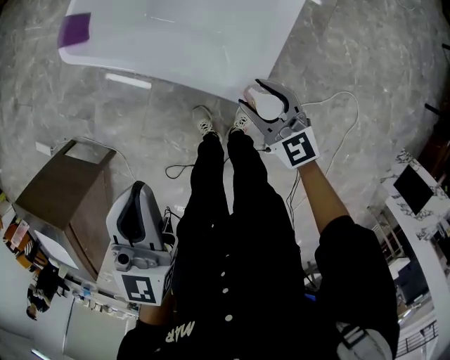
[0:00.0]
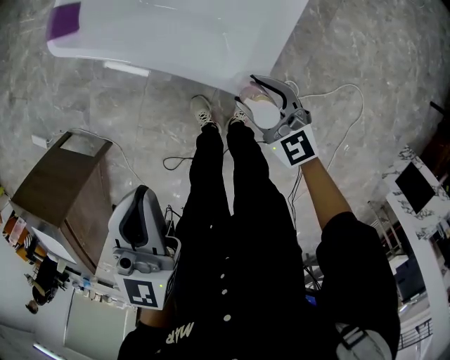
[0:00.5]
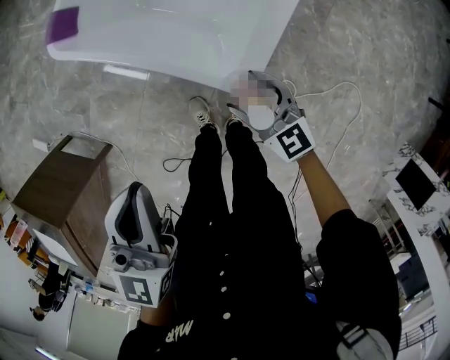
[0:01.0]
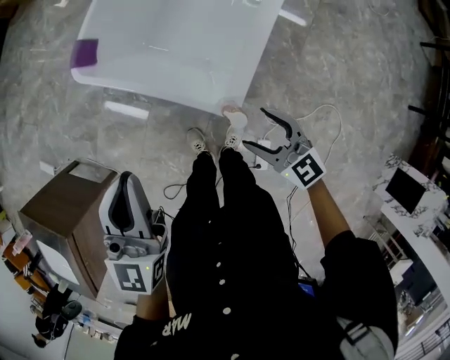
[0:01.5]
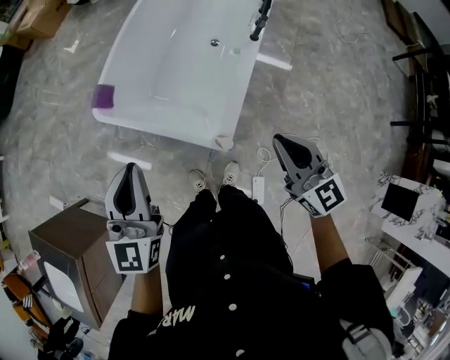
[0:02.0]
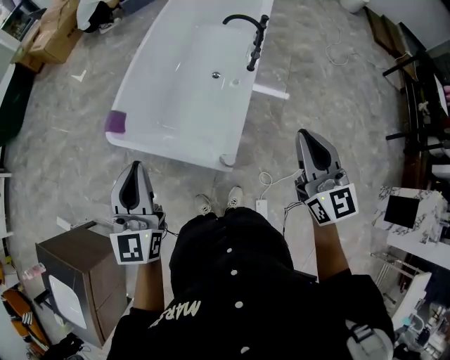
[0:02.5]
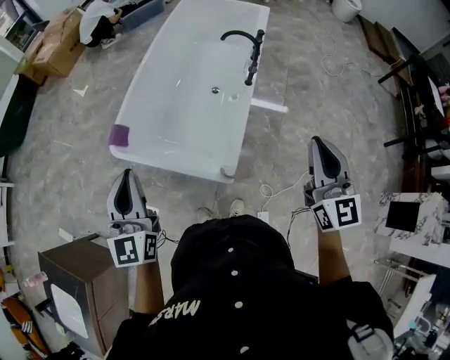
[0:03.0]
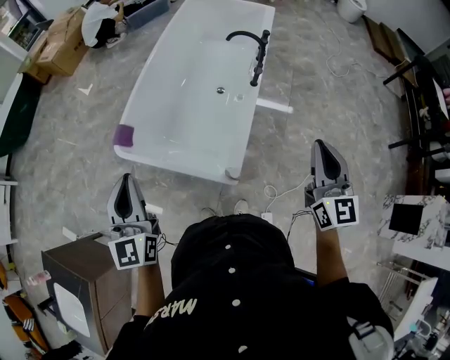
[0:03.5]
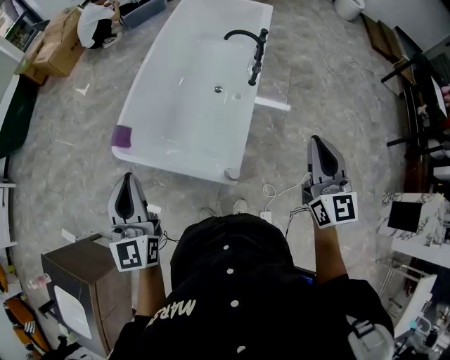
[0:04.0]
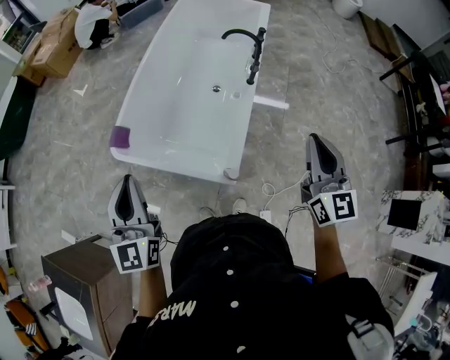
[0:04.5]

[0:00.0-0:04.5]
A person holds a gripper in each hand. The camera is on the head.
0:00.0 to 0:02.0: The left gripper heads upward, covering about 15 cm, while the right gripper goes approximately 30 cm upward, rotates approximately 20 degrees, and closes.
0:02.0 to 0:04.5: The left gripper moves to the left and upward, some 5 cm. The right gripper shifts roughly 15 cm upward and to the right, and rotates some 30 degrees.

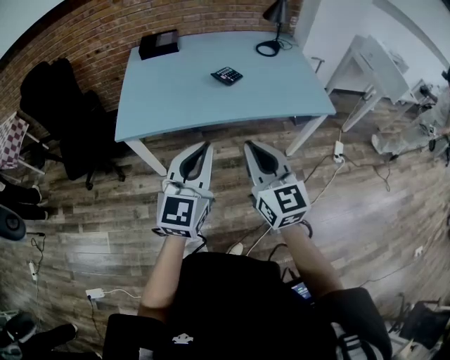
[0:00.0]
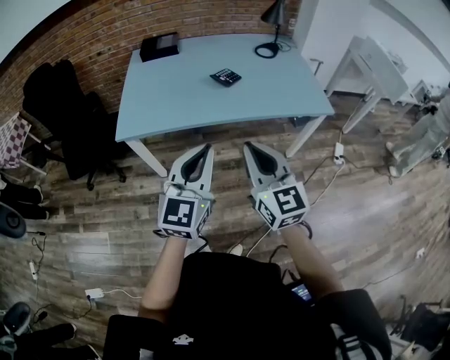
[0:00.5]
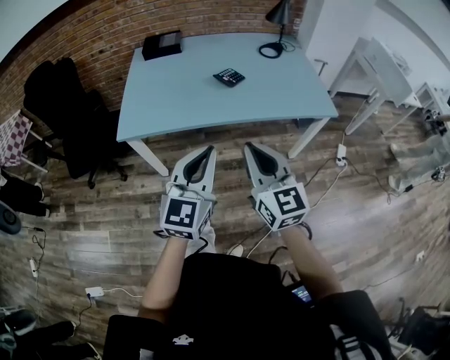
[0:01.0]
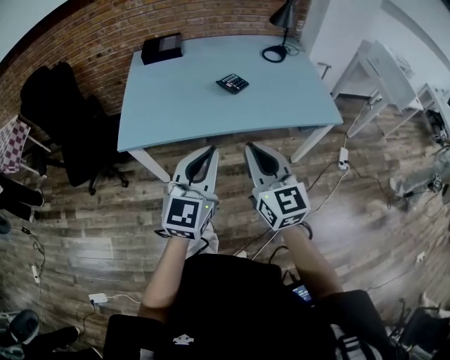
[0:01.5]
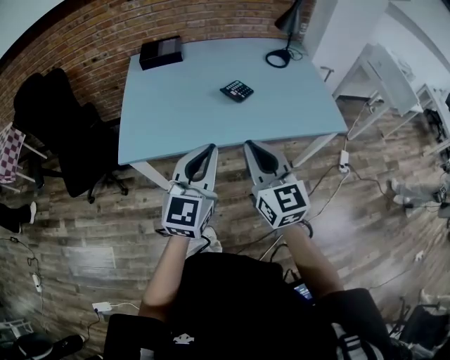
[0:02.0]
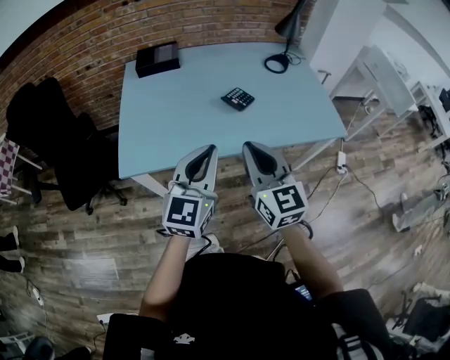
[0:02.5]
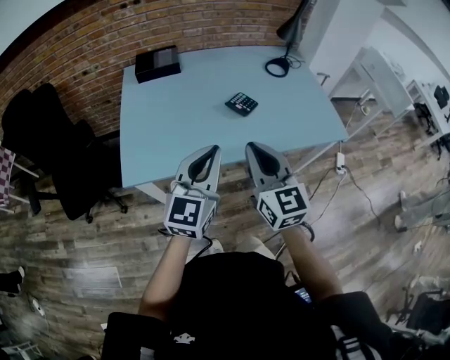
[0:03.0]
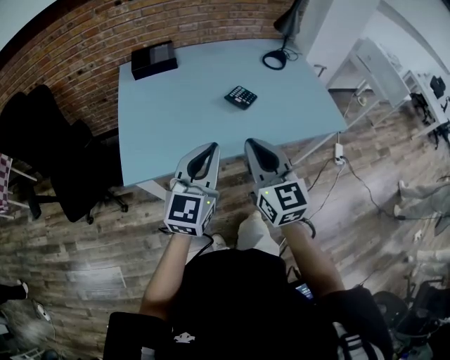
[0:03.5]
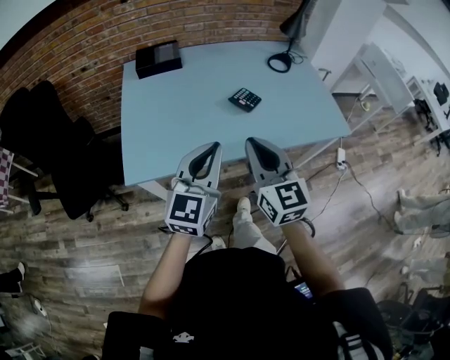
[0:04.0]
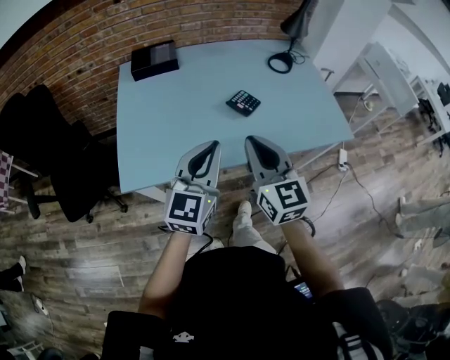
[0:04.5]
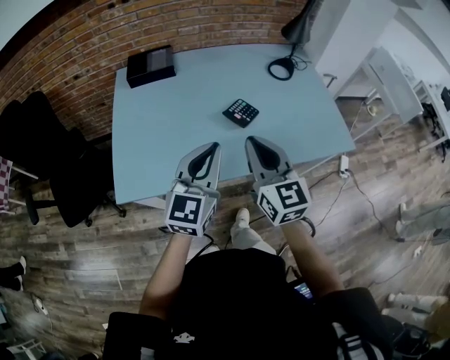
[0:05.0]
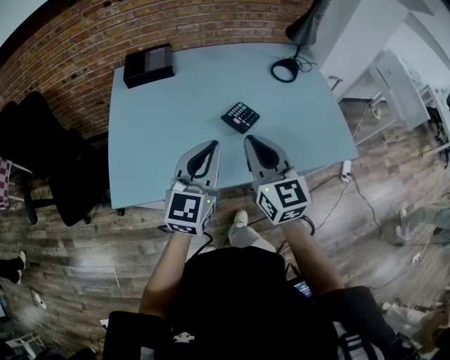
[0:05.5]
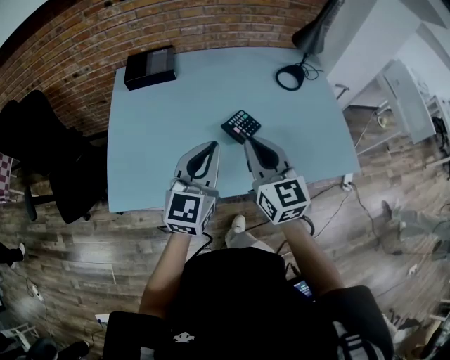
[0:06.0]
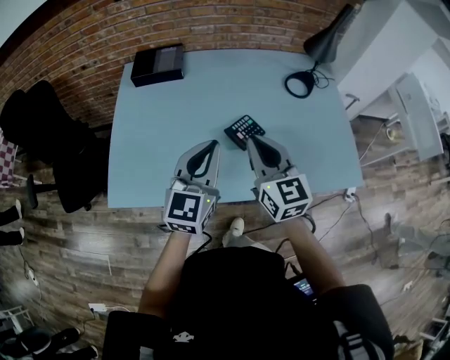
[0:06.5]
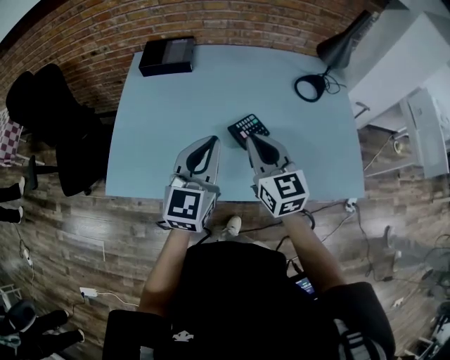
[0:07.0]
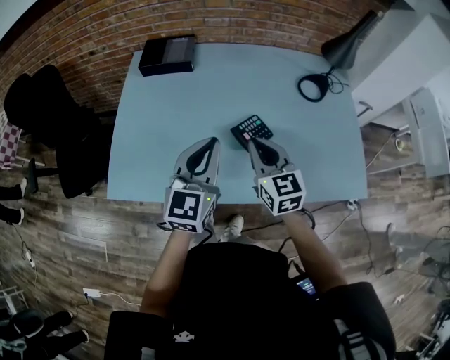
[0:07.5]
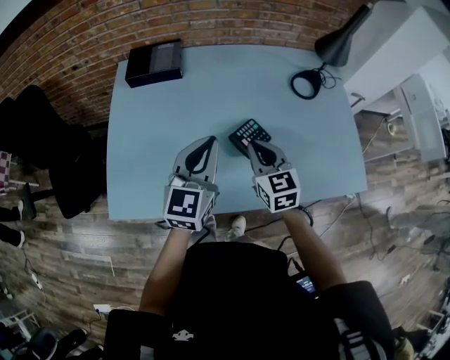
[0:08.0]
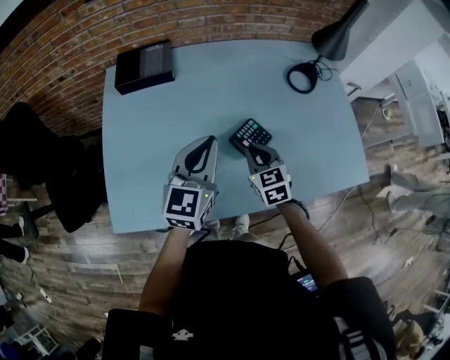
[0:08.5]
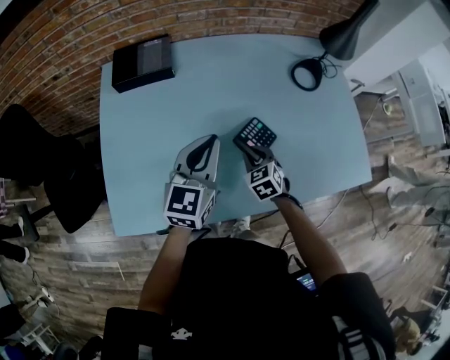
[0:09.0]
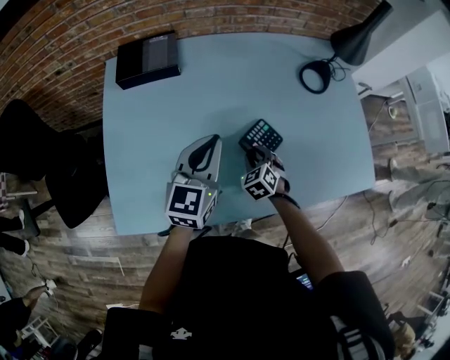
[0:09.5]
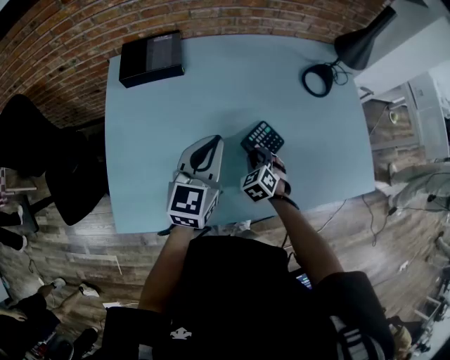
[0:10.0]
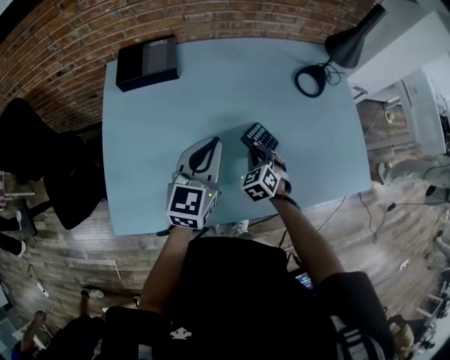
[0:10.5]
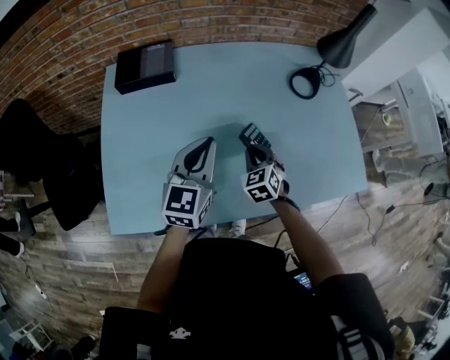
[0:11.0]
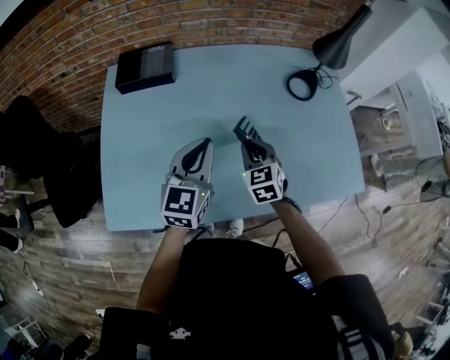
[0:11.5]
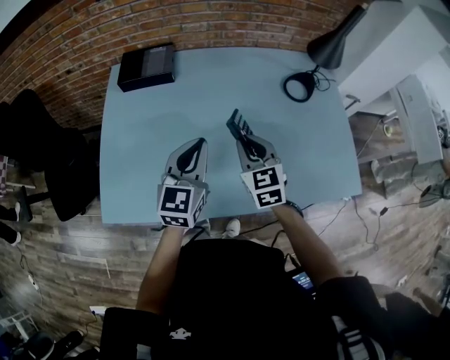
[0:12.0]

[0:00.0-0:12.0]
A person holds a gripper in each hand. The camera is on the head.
0:00.0 to 0:02.0: Both grippers travel together forward, some 10 cm.
0:02.0 to 0:04.0: The left gripper goes about 10 cm forward and to the left. The right gripper goes approximately 10 cm to the left and forward.
0:04.0 to 0:06.0: The two grippers go about 20 cm forward.
0:06.0 to 0:08.0: The left gripper goes approximately 10 cm forward, while the right gripper is displaced downward and forward by about 15 cm.
0:08.0 to 0:10.0: The right gripper travels downward by approximately 20 cm, tips its fingers downward by roughly 30 degrees, and opens; the left gripper moves forward, roughly 5 cm.
0:10.0 to 0:12.0: The right gripper shifts about 20 cm upward, and swivels roughly 40 degrees, while the left gripper ends up roughly 5 cm from where it was.

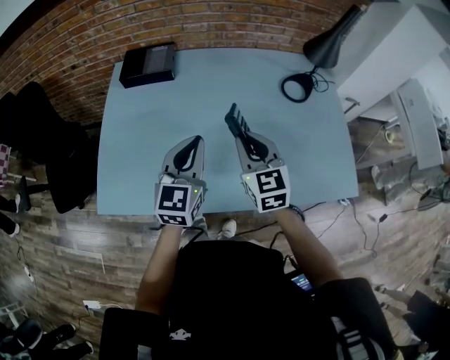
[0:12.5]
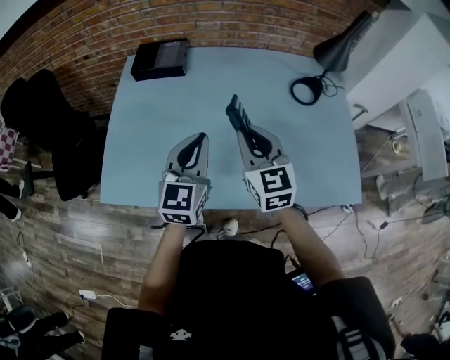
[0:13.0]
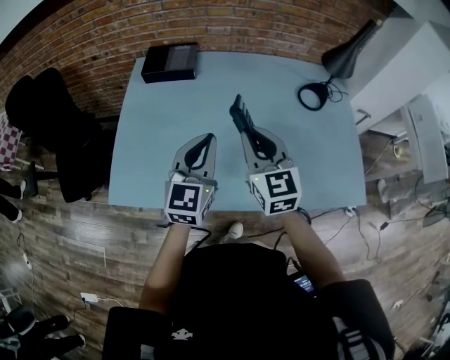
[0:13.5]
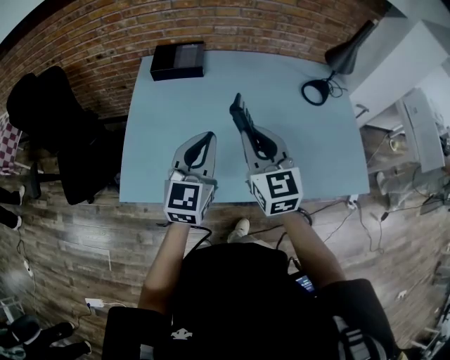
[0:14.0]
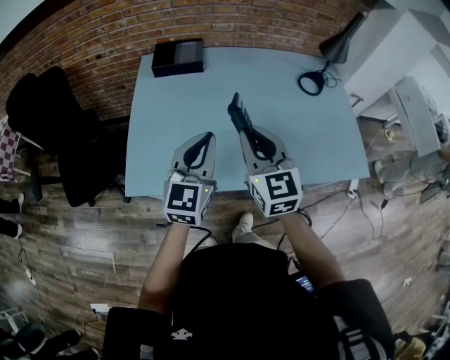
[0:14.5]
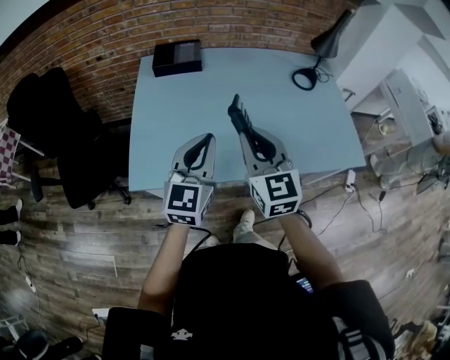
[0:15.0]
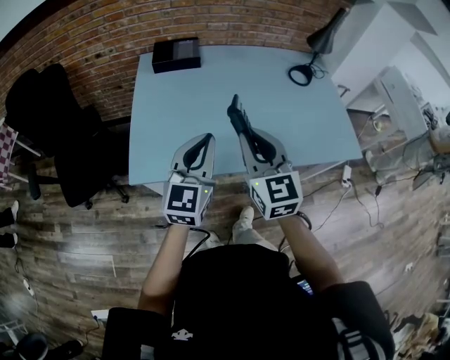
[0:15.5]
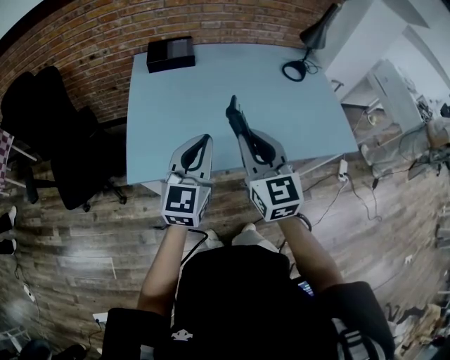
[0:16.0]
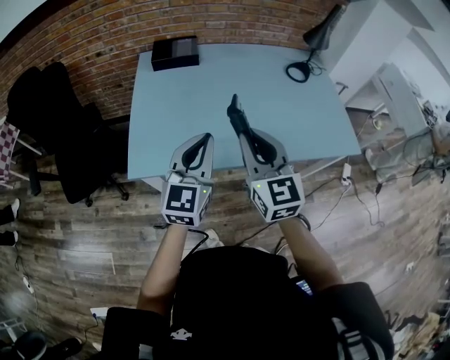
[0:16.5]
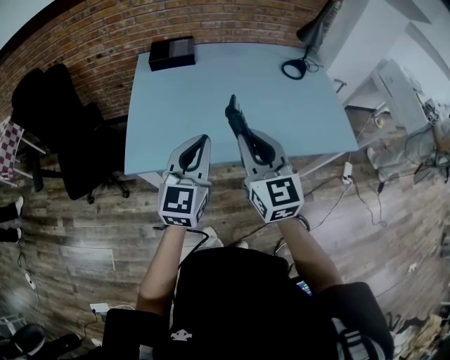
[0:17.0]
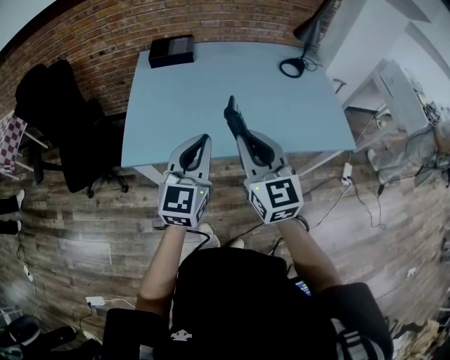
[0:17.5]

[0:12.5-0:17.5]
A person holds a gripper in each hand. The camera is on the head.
0:12.5 to 0:15.0: The left gripper goes approximately 20 cm backward and to the left. Meanwhile the right gripper is displaced backward, to the left and upward by some 25 cm.
0:15.0 to 0:17.5: The two grippers go about 15 cm backward and to the right.

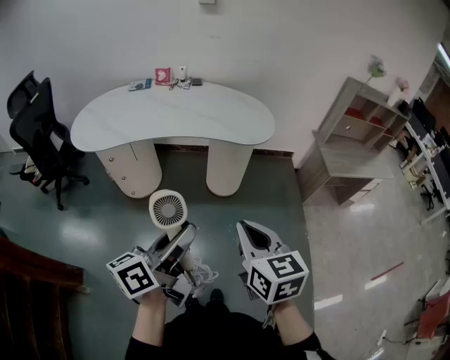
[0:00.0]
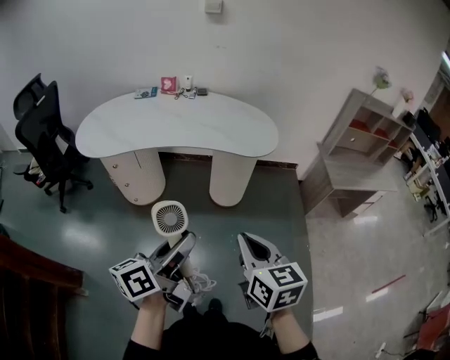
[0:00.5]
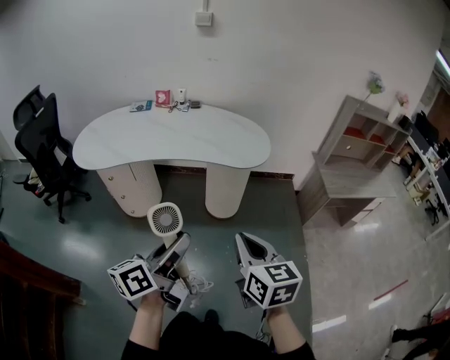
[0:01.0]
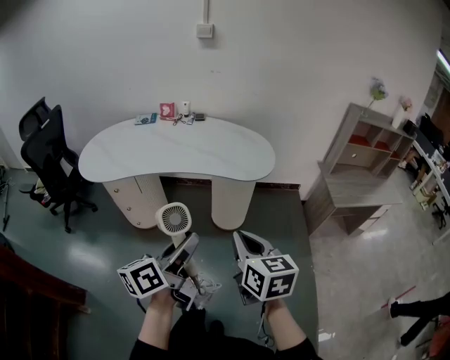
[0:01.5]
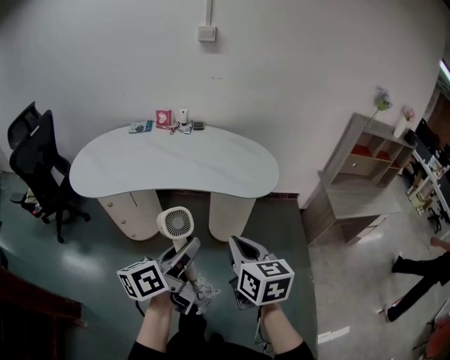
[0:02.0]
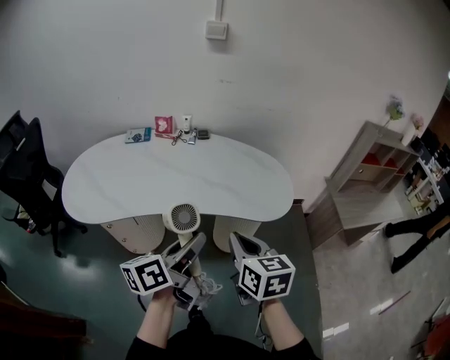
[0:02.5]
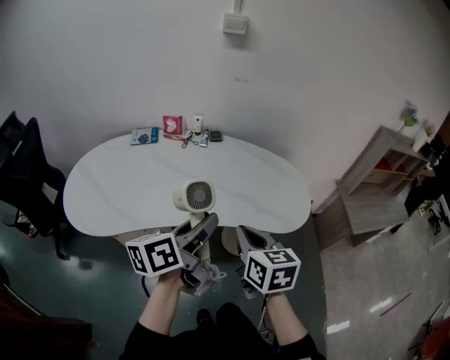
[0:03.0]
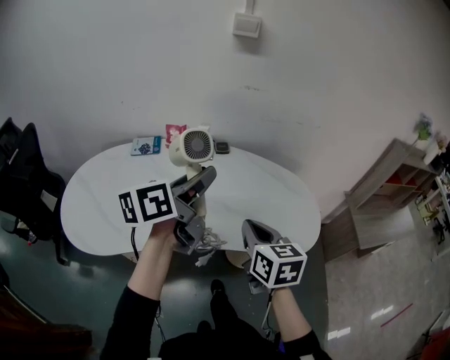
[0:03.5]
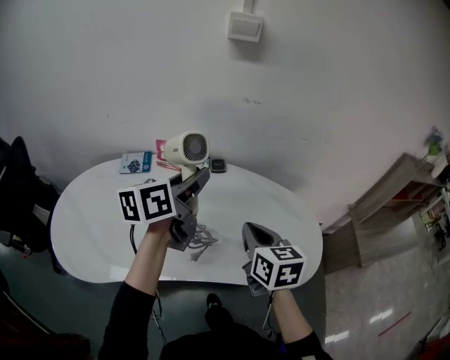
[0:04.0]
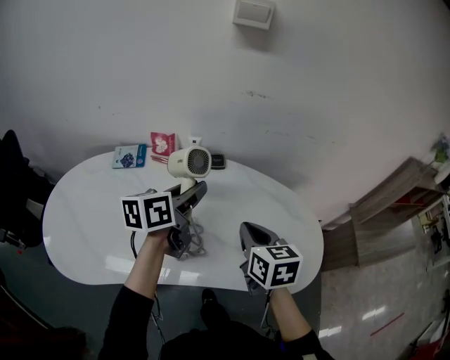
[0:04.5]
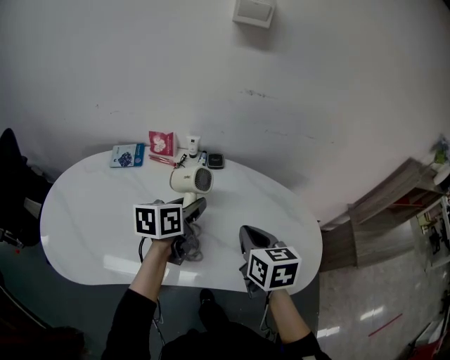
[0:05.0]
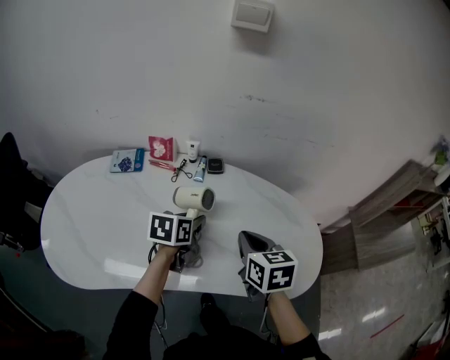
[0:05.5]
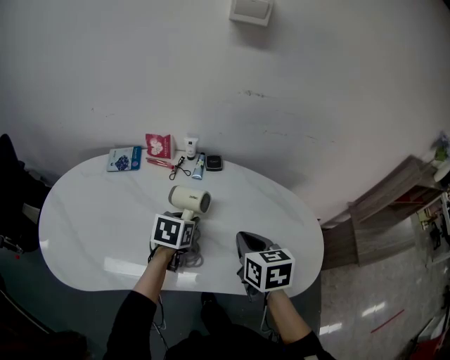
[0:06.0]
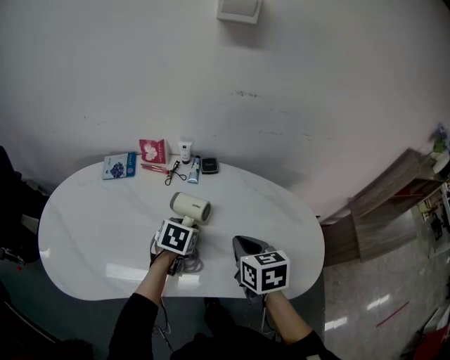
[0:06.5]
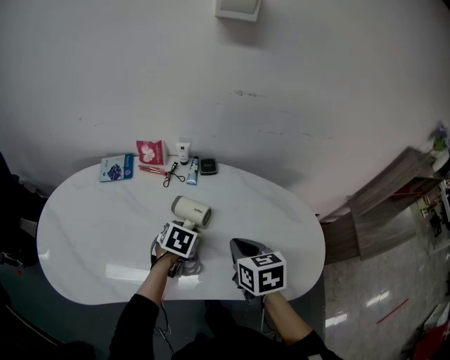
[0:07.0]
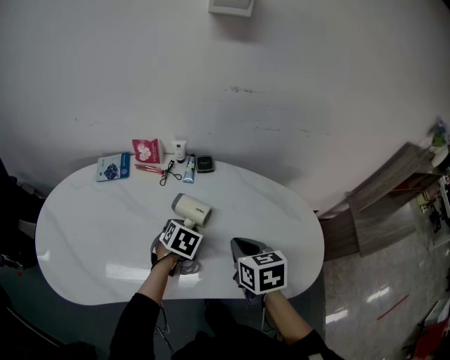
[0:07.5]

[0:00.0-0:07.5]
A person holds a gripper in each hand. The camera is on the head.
0:00.0 to 0:02.0: Both grippers travel together forward, approximately 15 cm.
0:02.0 to 0:04.0: The pair of grippers is taken forward, about 50 cm.
0:04.0 to 0:05.5: The left gripper travels downward by some 20 cm, and tilts its fingers roughly 30 degrees downward. Meanwhile the right gripper heads downward, covering roughly 5 cm.
0:05.5 to 0:07.5: The left gripper is displaced downward by some 10 cm, and swivels approximately 40 degrees; the right gripper moves downward, about 5 cm.
